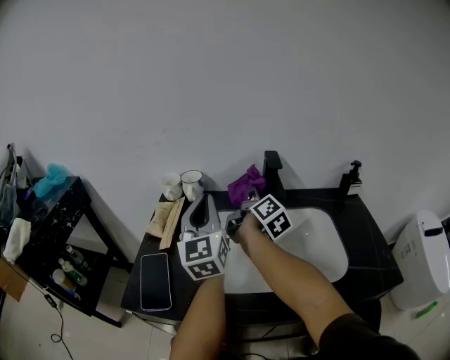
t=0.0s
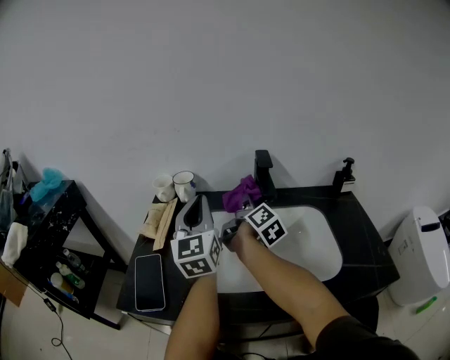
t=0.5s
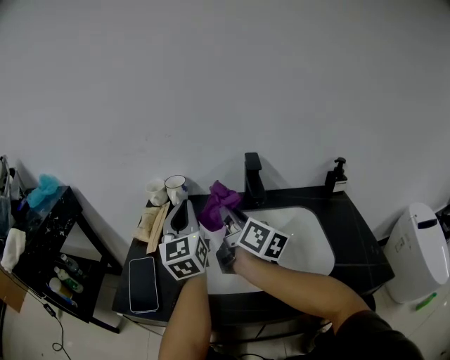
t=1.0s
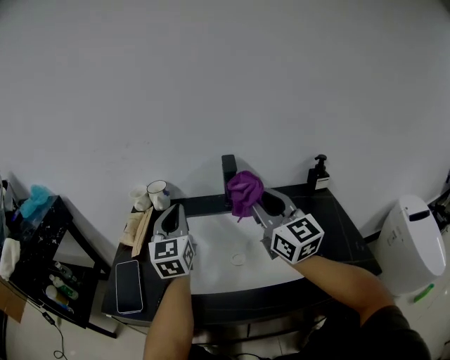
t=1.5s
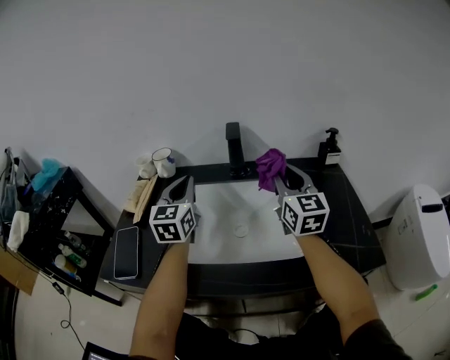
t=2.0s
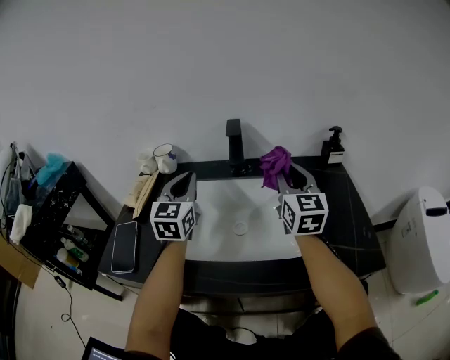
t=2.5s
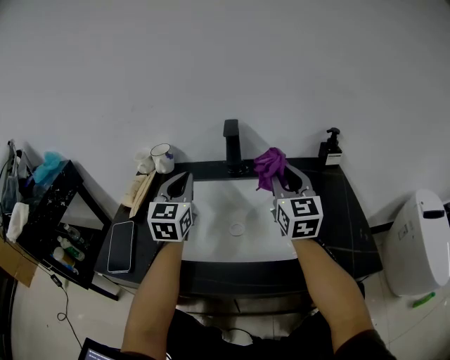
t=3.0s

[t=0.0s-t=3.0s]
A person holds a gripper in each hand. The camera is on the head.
t=0.0s to t=1.5s: The right gripper heads backward, upward and to the right, covering approximately 20 cm, and rotates around the line of its fingers by about 60 degrees, counterclockwise from behind.
t=1.5s to t=3.0s: The right gripper goes approximately 10 cm to the right and downward.

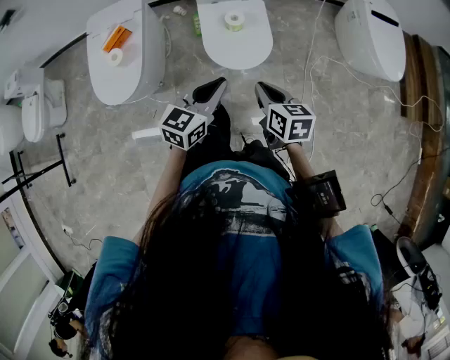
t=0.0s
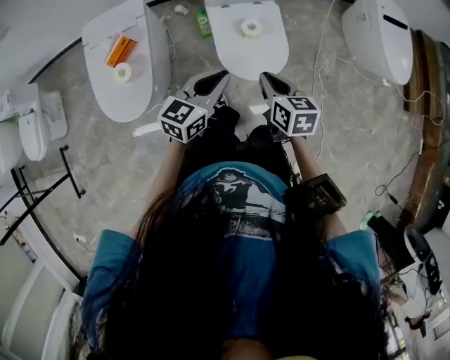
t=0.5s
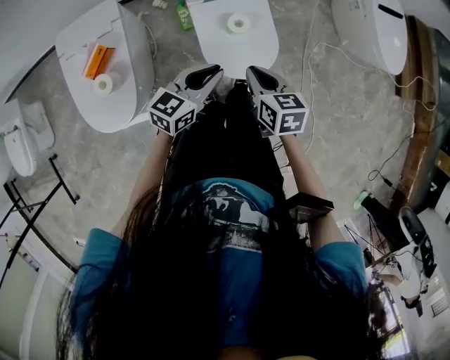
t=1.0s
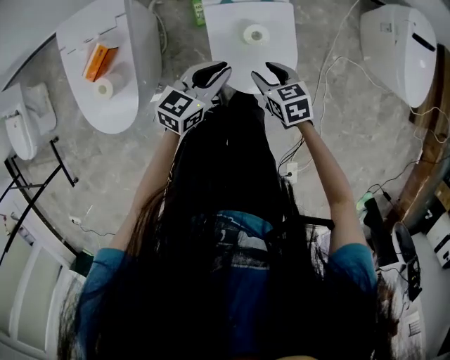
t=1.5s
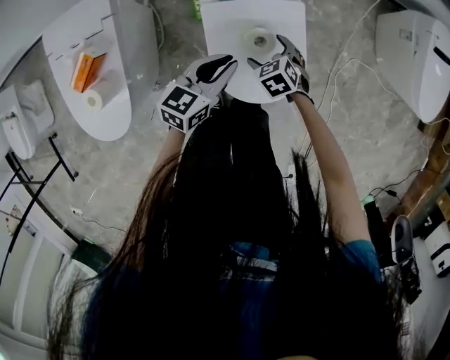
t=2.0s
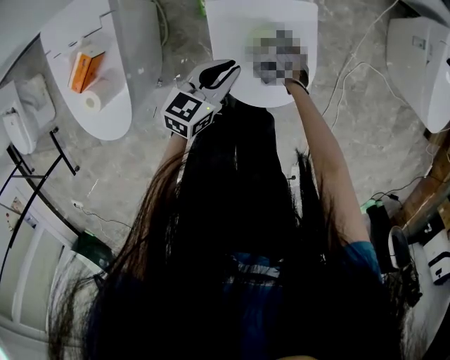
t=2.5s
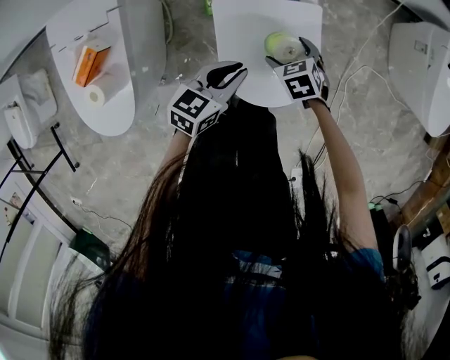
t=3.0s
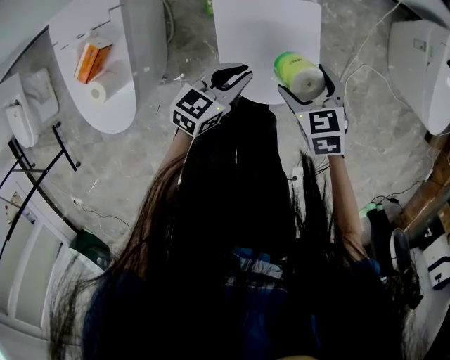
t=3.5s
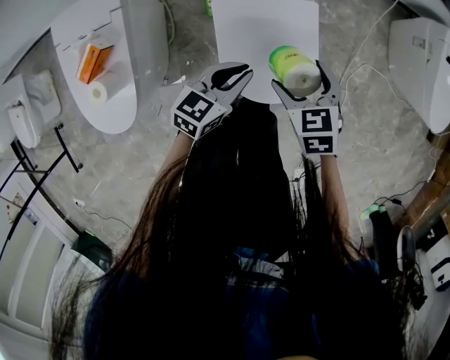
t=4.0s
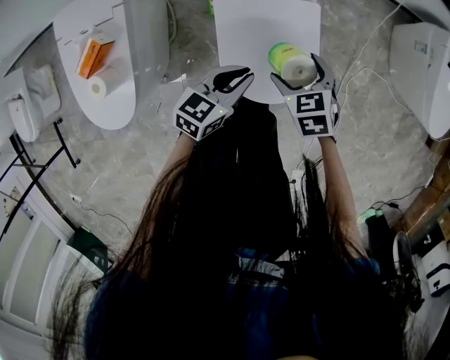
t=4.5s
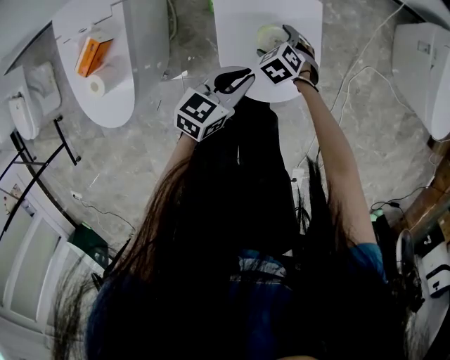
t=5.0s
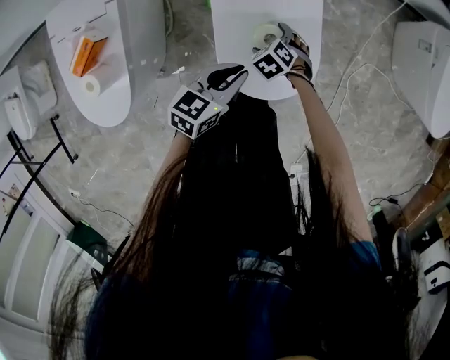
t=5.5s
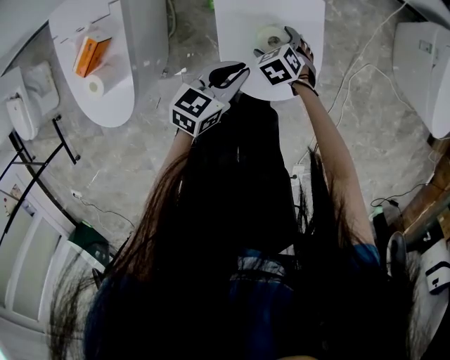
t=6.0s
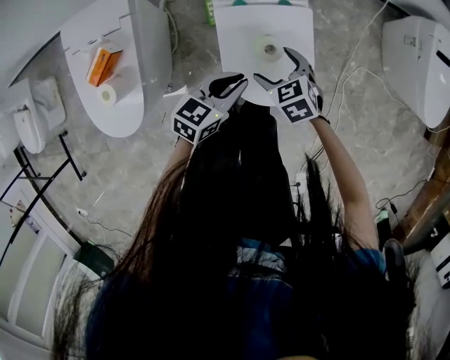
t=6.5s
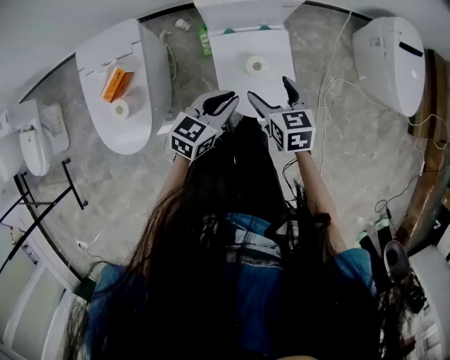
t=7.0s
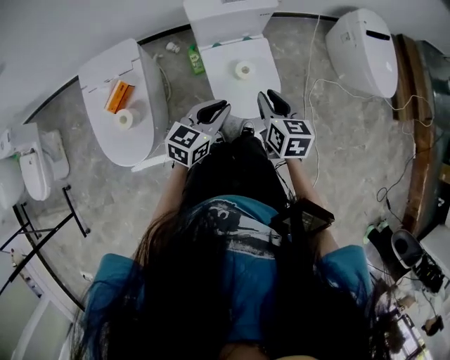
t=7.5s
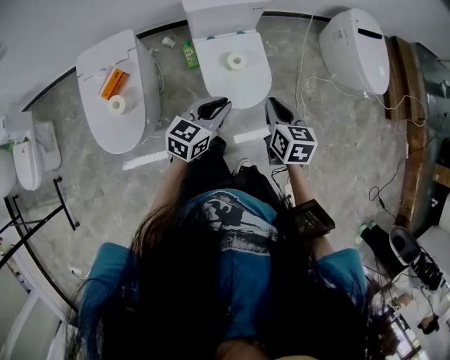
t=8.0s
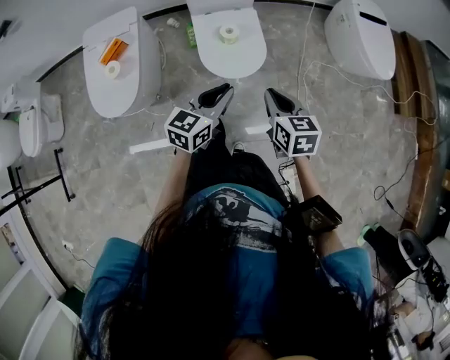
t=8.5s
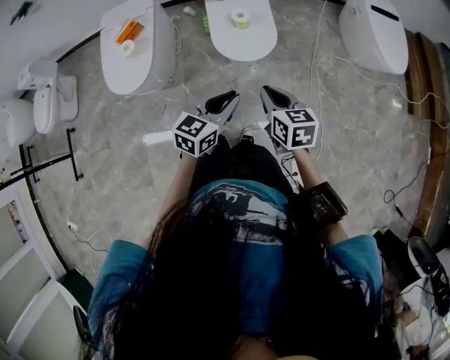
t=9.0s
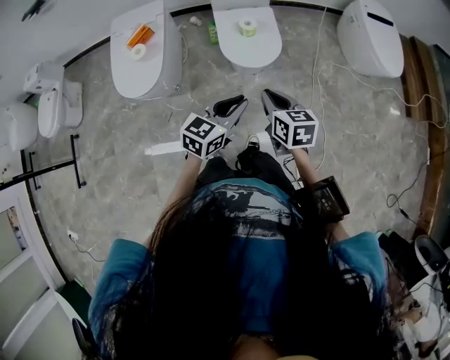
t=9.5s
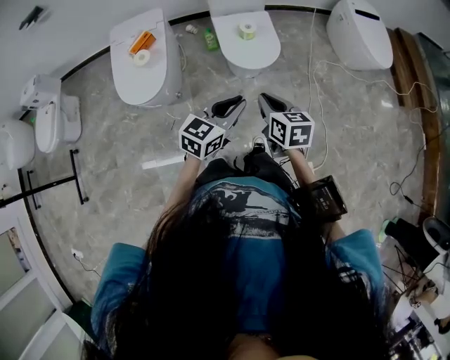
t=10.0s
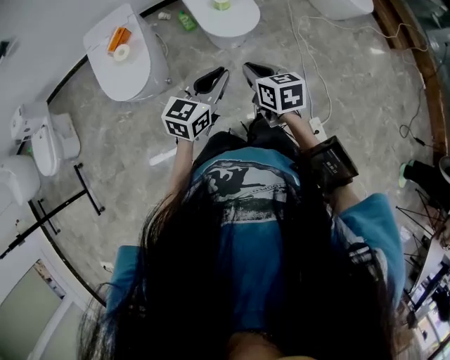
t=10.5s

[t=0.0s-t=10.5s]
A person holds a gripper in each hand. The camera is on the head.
t=0.0s to t=2.0s: Both grippers move forward and downward, roughly 50 cm. The right gripper changes its angle by approximately 50 degrees, and opens up.
t=2.0s to t=4.0s: The right gripper shifts approximately 15 cm upward.
t=4.0s to t=6.5s: The right gripper travels to the left by approximately 5 cm, and travels downward and back again, about 20 cm each way.
t=6.5s to t=8.5s: Both grippers move backward, upward and to the right, approximately 40 cm. The right gripper changes its angle by roughly 40 degrees, and closes up.
t=8.5s to t=10.5s: Both grippers move backward and to the left, approximately 25 cm.

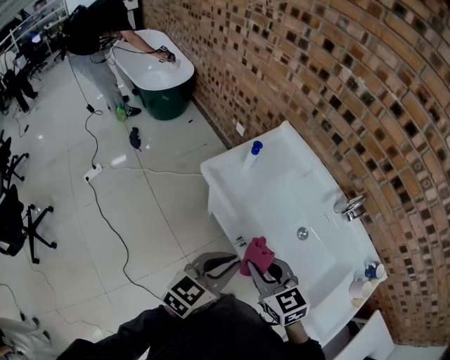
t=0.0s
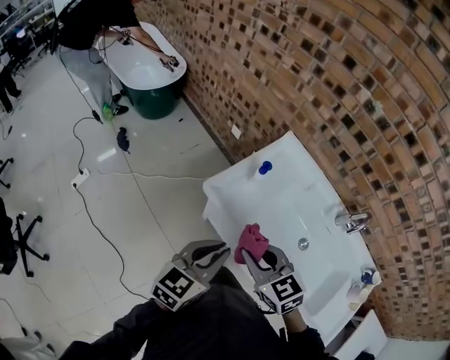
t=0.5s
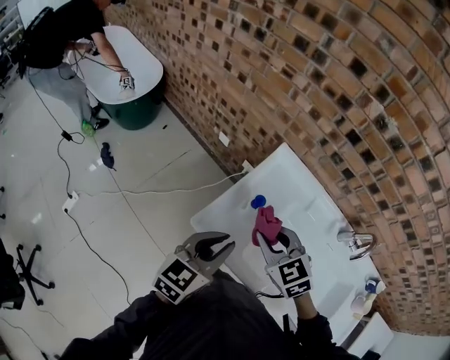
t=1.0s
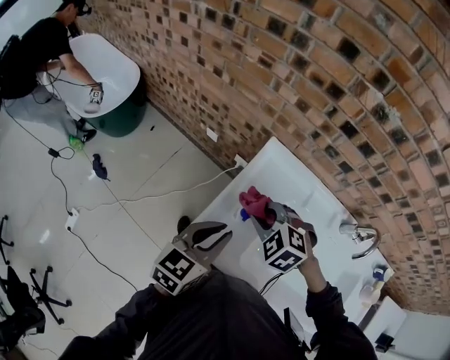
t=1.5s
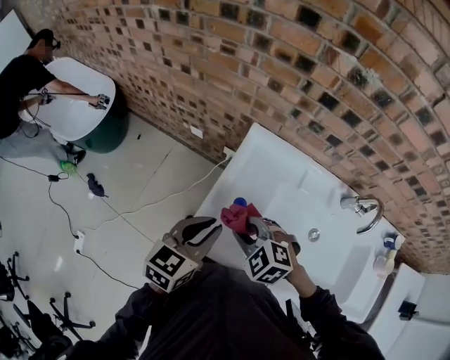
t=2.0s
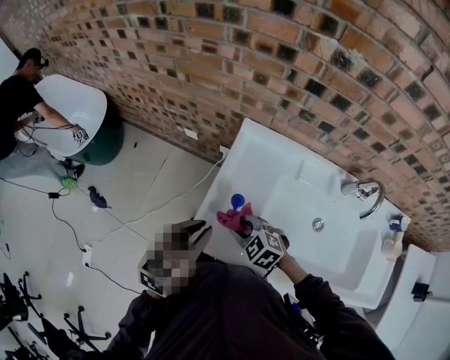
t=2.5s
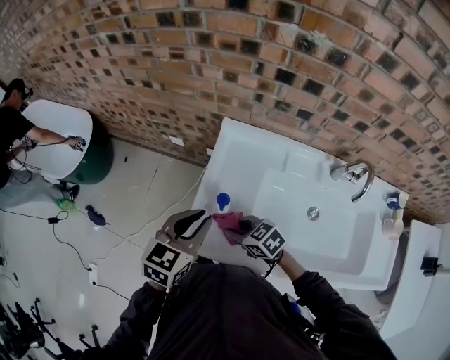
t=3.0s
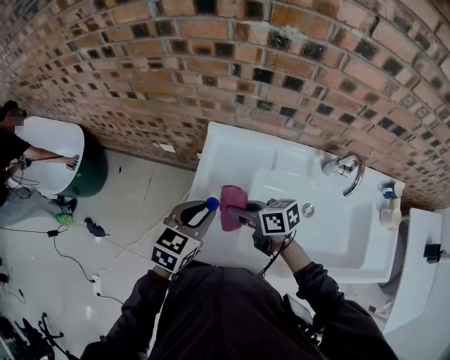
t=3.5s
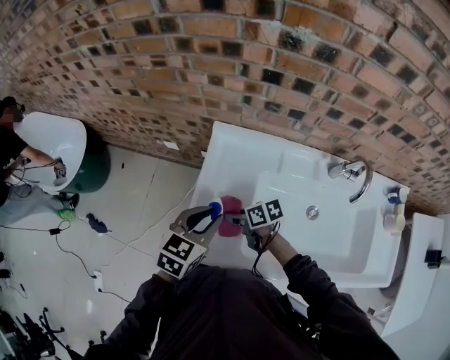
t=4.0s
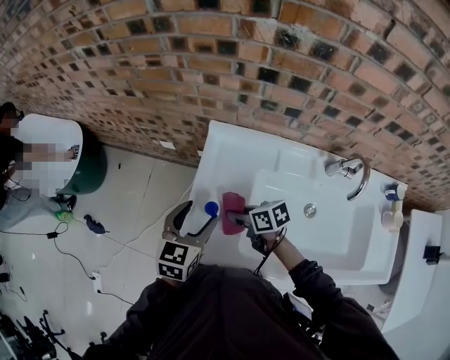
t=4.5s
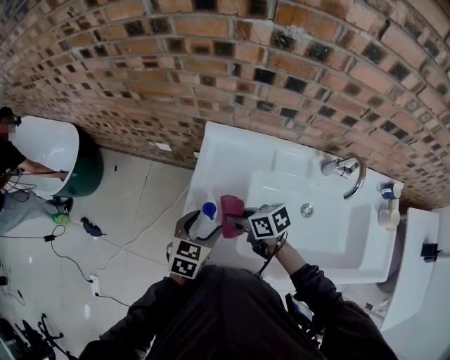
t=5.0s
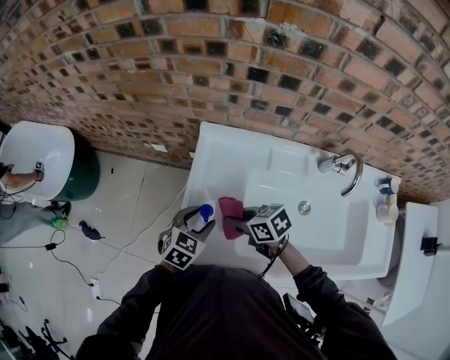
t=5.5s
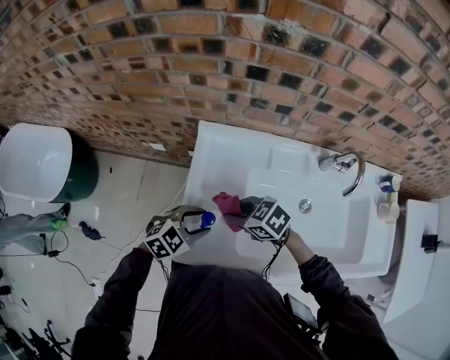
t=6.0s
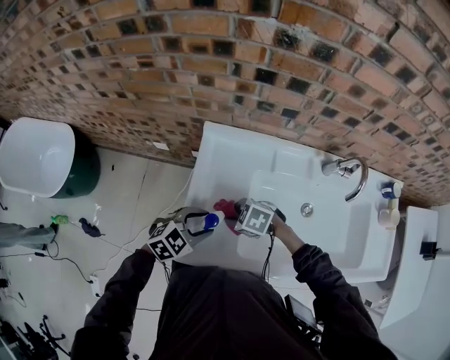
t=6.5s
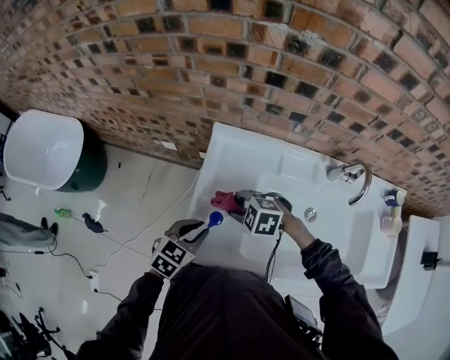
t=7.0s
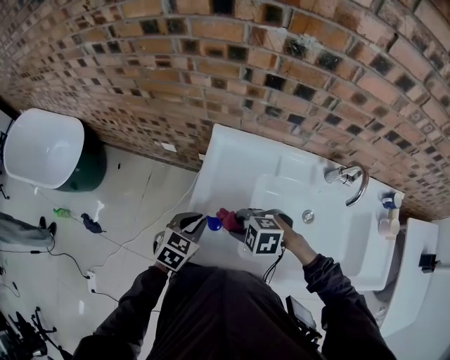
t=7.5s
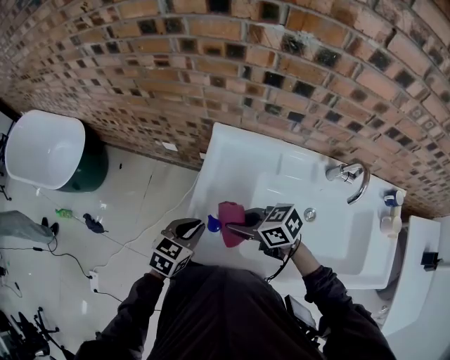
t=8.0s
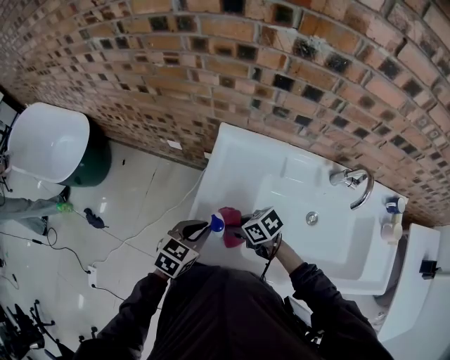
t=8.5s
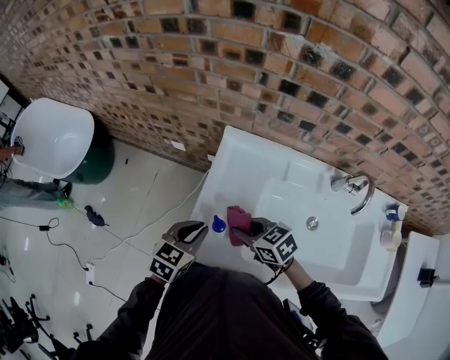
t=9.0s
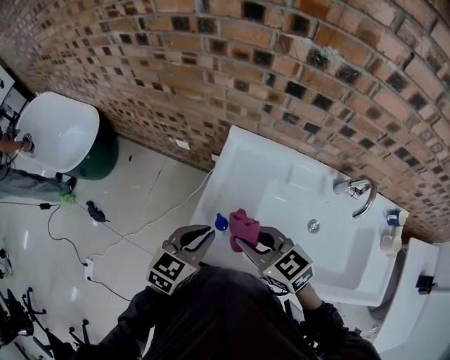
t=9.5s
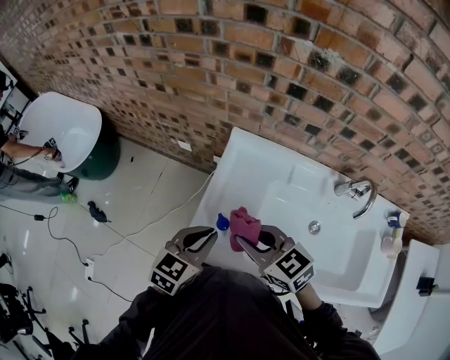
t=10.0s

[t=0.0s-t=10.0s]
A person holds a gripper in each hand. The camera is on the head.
t=0.0s to t=2.0s: The right gripper travels forward and to the left by some 35 cm, and changes its angle by some 30 degrees. Meanwhile the left gripper goes approximately 35 cm forward.
t=2.0s to t=4.0s: The left gripper travels to the right by approximately 5 cm; the right gripper swings up and down, about 15 cm each way, with 2 reversals, and rotates around the line of its fingers by approximately 80 degrees, clockwise from behind.
t=4.0s to t=6.0s: The right gripper is displaced upward by roughly 10 cm, and rotates roughly 40 degrees. Meanwhile the left gripper goes roughly 10 cm downward, rotates roughly 40 degrees, and opens its fingers.
t=6.0s to t=8.0s: The right gripper shifts by approximately 5 cm; the left gripper turns by approximately 40 degrees, and closes its fingers.
t=8.0s to t=10.0s: The two grippers go about 10 cm upward. The right gripper turns by approximately 30 degrees.

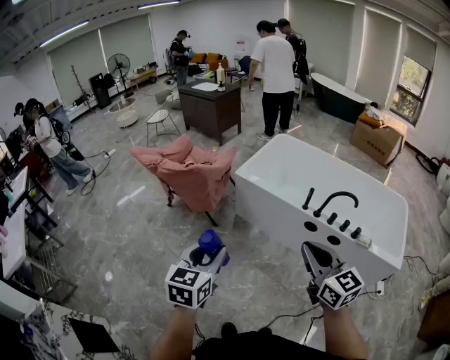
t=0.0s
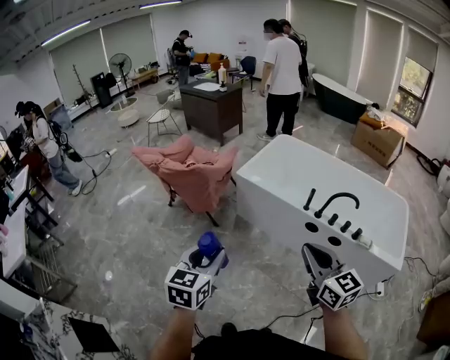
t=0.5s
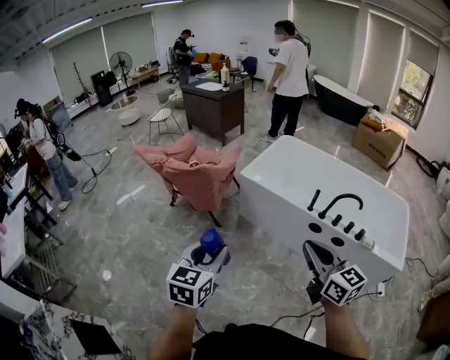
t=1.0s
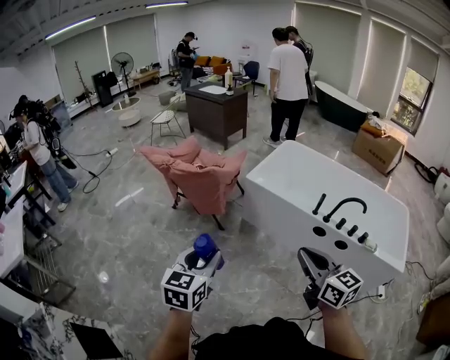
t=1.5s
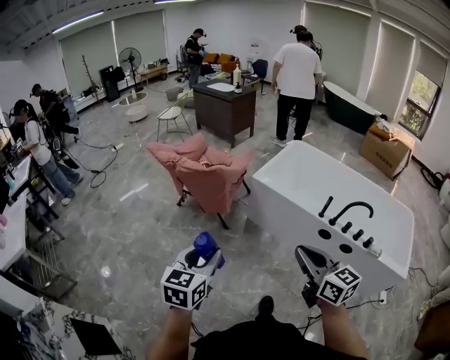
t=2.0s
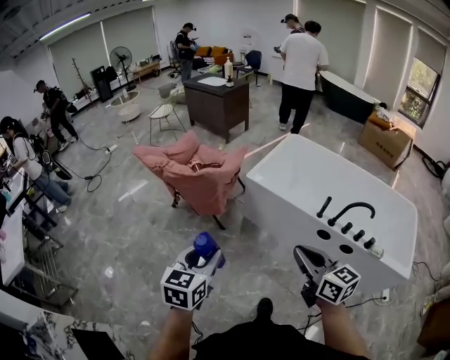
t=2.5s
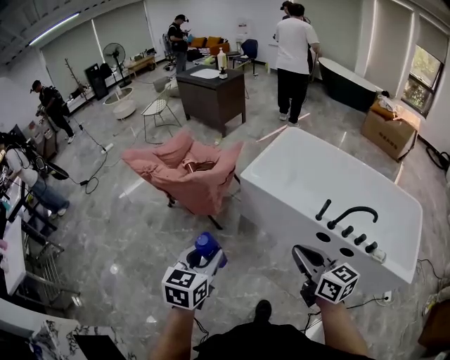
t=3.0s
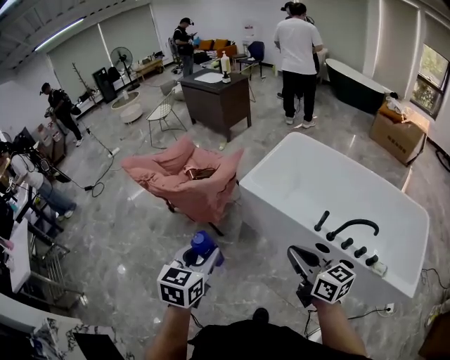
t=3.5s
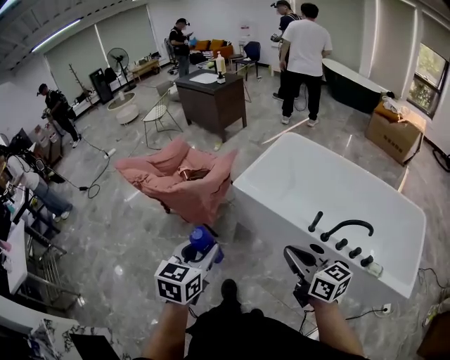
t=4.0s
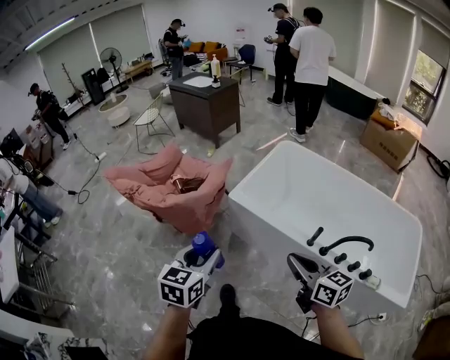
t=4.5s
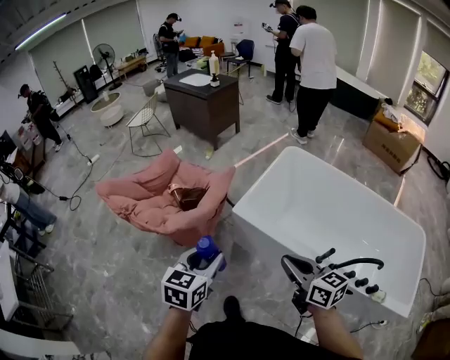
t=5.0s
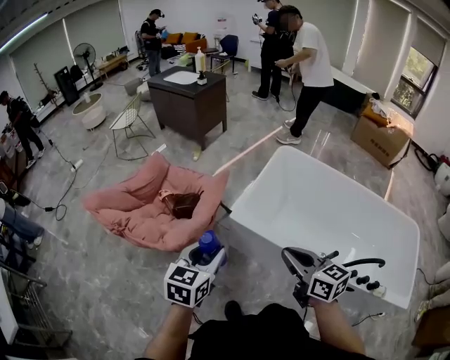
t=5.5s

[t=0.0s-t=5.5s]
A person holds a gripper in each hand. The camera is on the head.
t=0.0s to t=2.0s: The two grippers go about 15 cm to the left.
t=2.0s to t=3.5s: Both grippers travel together forward and to the right, some 25 cm.
t=3.5s to t=5.5s: The two grippers go approximately 30 cm forward.
